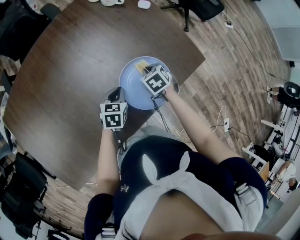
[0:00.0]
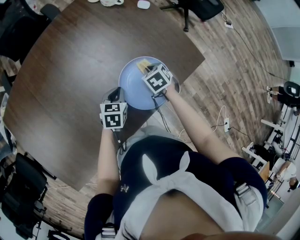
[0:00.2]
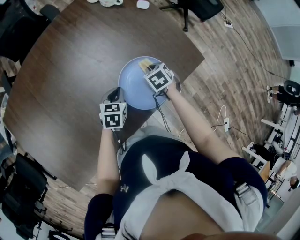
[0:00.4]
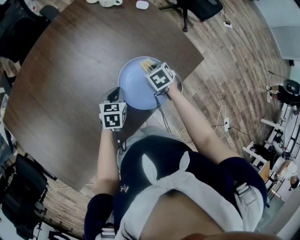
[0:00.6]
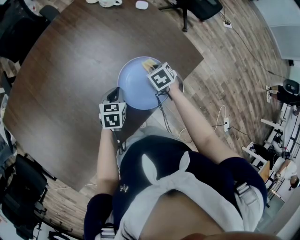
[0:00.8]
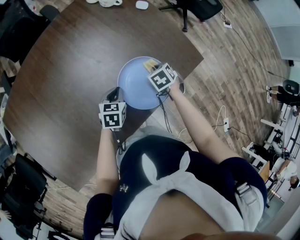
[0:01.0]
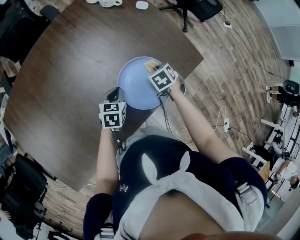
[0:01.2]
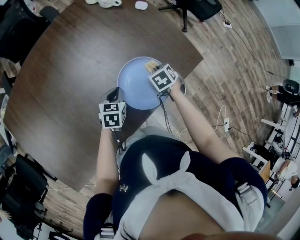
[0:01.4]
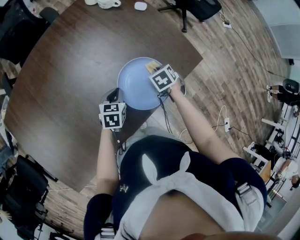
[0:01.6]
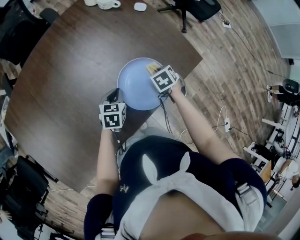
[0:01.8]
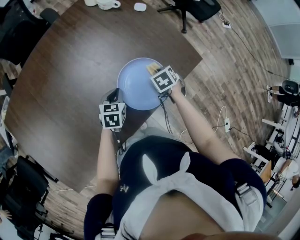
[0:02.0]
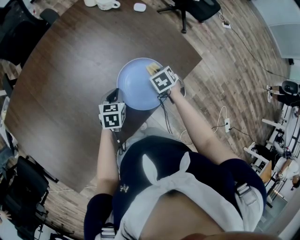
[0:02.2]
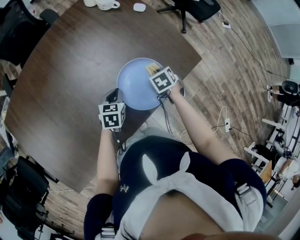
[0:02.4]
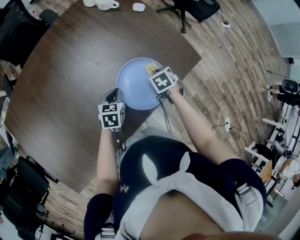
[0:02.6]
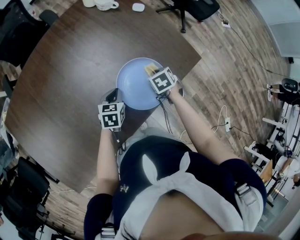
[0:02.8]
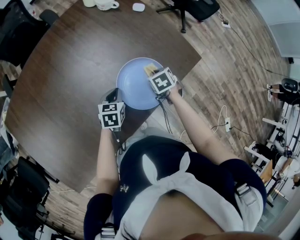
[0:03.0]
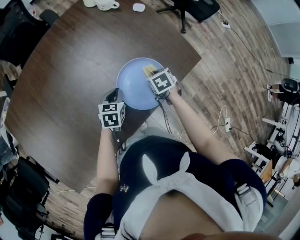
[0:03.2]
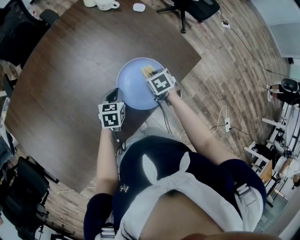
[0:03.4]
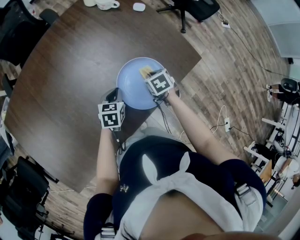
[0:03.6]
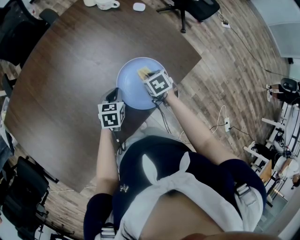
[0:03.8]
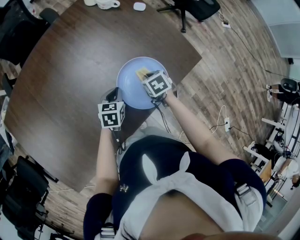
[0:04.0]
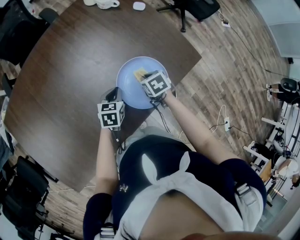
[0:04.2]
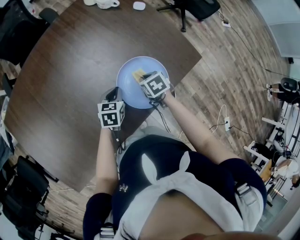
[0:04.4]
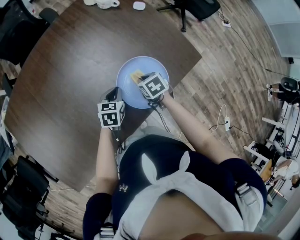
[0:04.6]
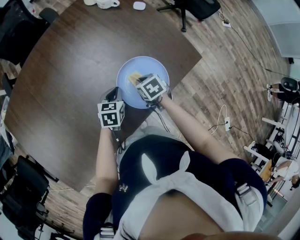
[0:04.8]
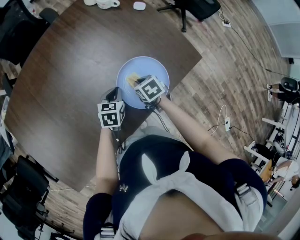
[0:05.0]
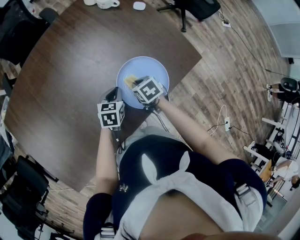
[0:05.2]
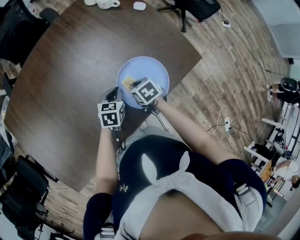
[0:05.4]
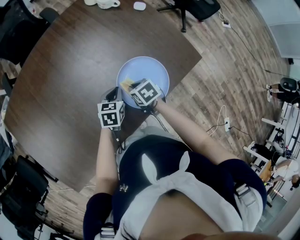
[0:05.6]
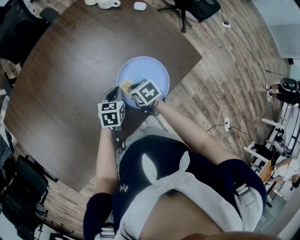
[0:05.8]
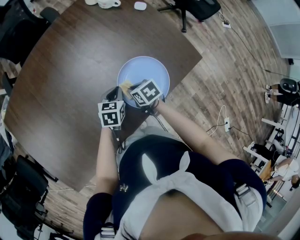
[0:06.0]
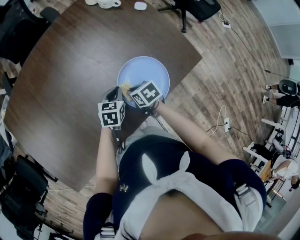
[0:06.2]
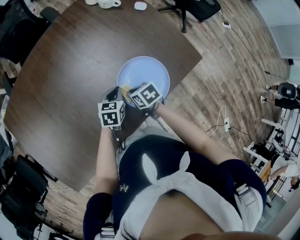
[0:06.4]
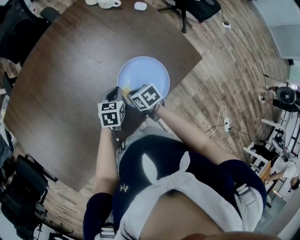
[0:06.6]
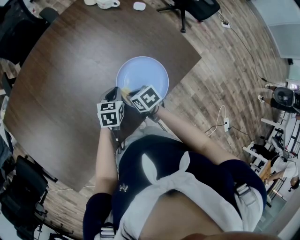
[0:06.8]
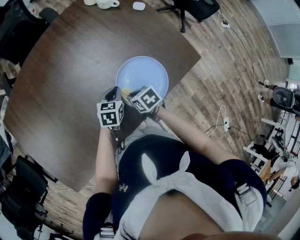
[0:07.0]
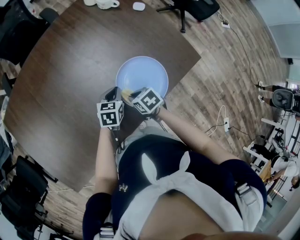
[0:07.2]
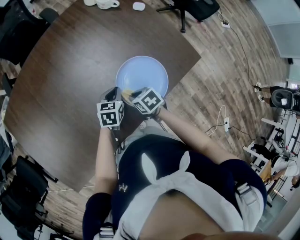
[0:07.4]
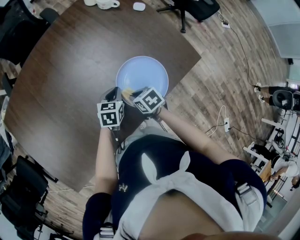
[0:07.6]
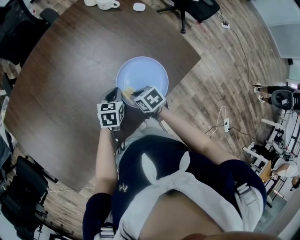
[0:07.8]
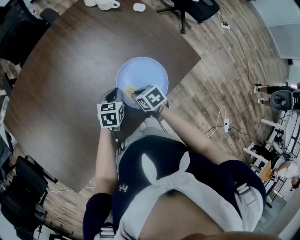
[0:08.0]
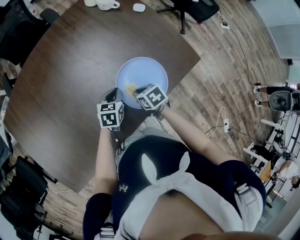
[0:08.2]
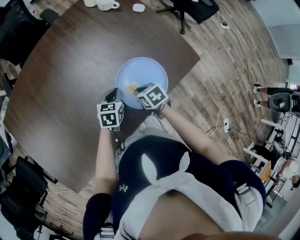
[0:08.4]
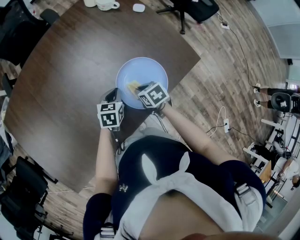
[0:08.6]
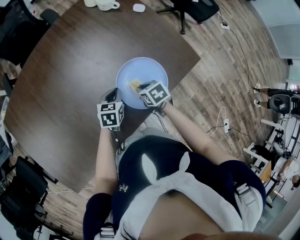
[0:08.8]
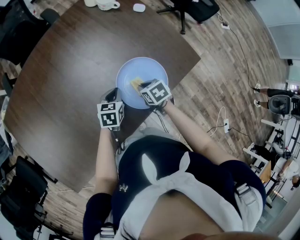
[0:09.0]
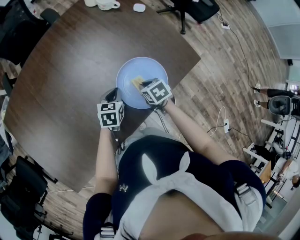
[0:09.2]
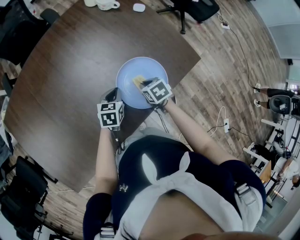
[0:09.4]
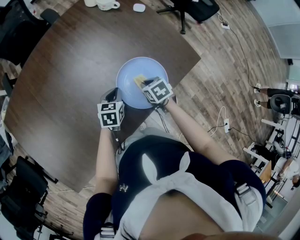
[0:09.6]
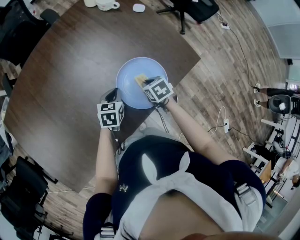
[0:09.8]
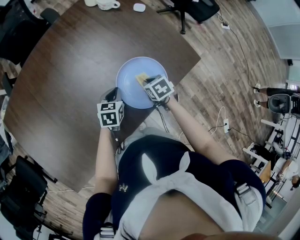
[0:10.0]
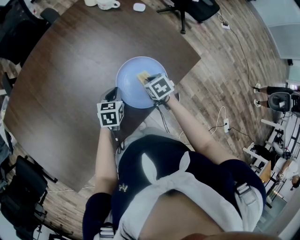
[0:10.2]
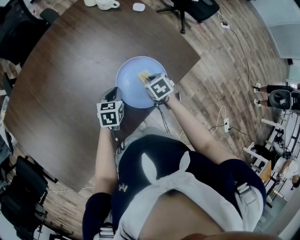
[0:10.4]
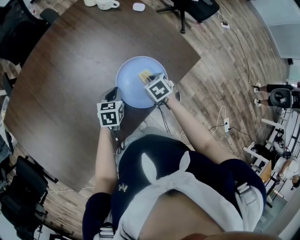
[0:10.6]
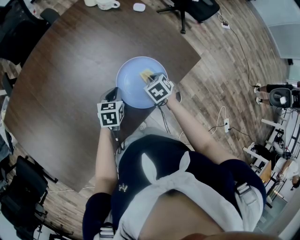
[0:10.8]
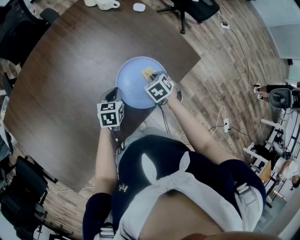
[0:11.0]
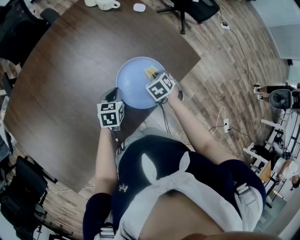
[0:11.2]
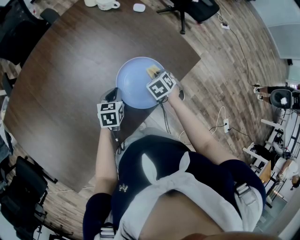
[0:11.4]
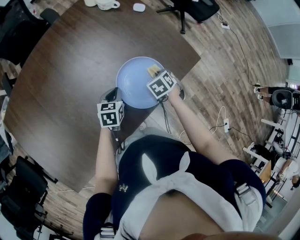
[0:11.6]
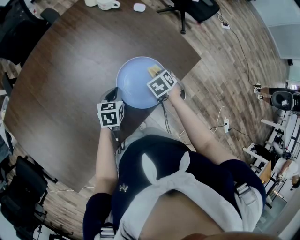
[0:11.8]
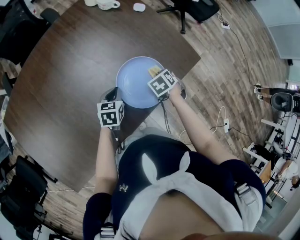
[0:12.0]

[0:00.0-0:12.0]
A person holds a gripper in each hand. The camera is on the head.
0:00.0 to 0:01.6: The right gripper travels to the right by about 5 cm.
0:01.6 to 0:03.0: The grippers stay close to where they were, moving slightly.
0:03.0 to 0:04.4: The right gripper travels to the left by roughly 5 cm.
0:04.4 to 0:06.0: The right gripper goes some 10 cm to the left.
0:06.0 to 0:07.6: The grippers move only a little.
0:07.6 to 0:09.0: The right gripper goes roughly 5 cm to the right.
0:09.0 to 0:10.4: The grippers move only a little.
0:10.4 to 0:12.0: The right gripper ends up roughly 5 cm from where it was.

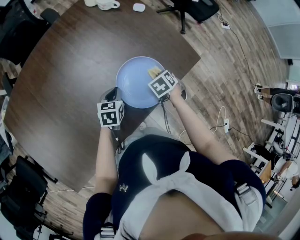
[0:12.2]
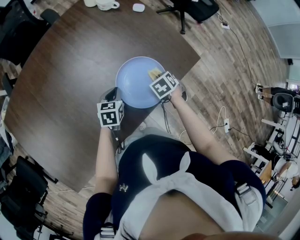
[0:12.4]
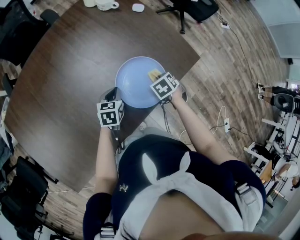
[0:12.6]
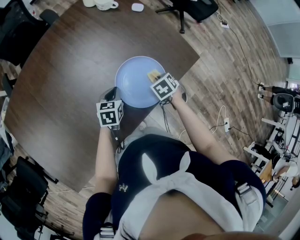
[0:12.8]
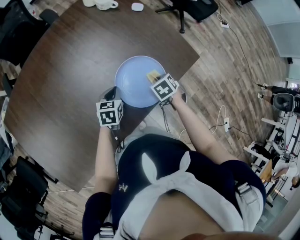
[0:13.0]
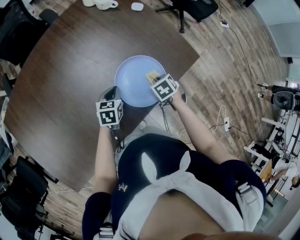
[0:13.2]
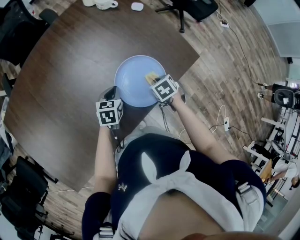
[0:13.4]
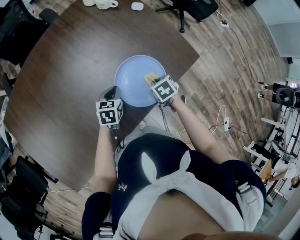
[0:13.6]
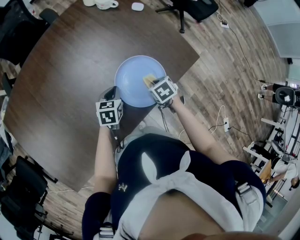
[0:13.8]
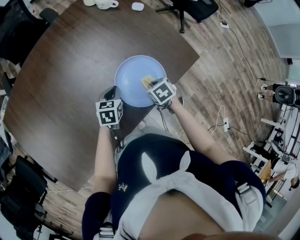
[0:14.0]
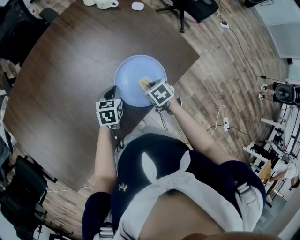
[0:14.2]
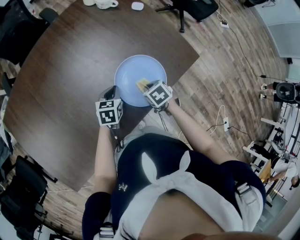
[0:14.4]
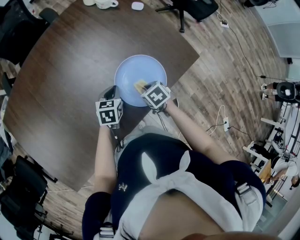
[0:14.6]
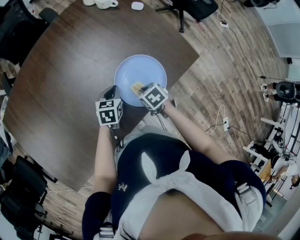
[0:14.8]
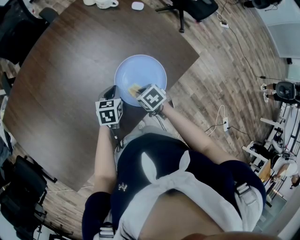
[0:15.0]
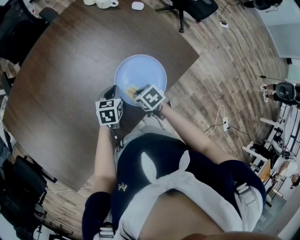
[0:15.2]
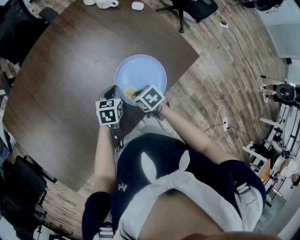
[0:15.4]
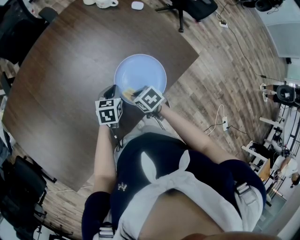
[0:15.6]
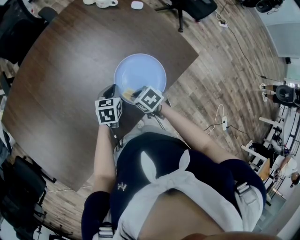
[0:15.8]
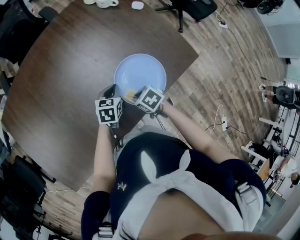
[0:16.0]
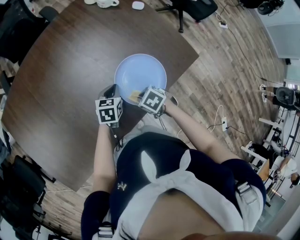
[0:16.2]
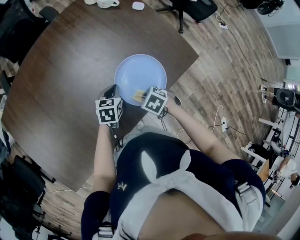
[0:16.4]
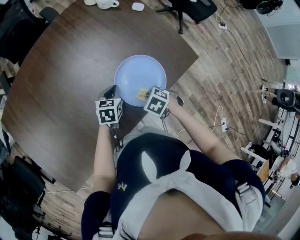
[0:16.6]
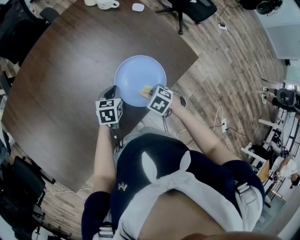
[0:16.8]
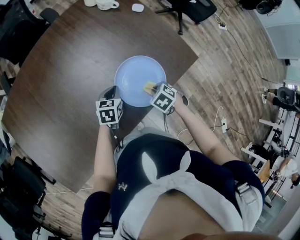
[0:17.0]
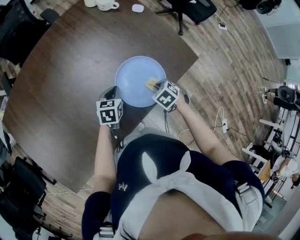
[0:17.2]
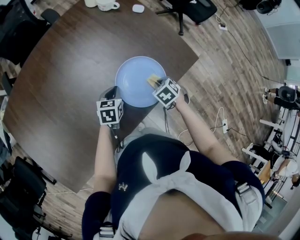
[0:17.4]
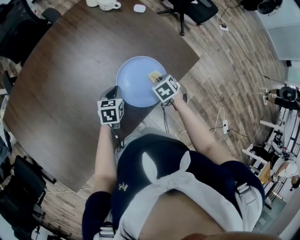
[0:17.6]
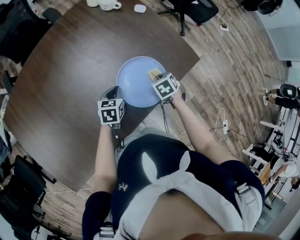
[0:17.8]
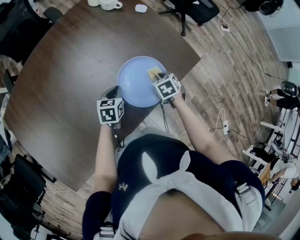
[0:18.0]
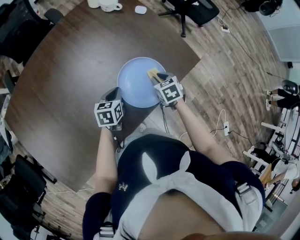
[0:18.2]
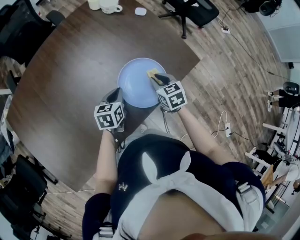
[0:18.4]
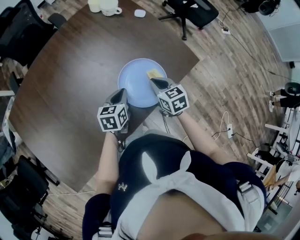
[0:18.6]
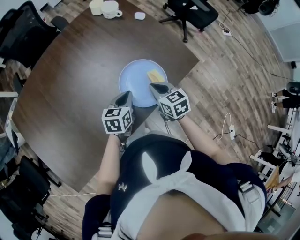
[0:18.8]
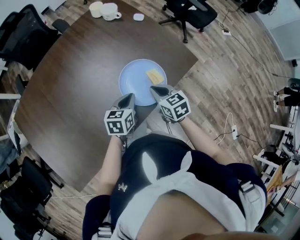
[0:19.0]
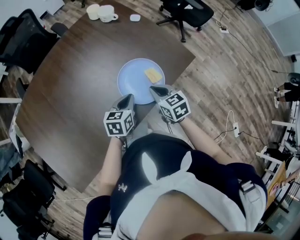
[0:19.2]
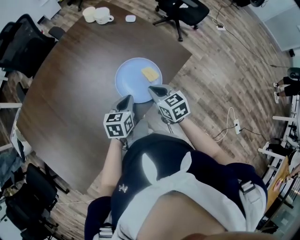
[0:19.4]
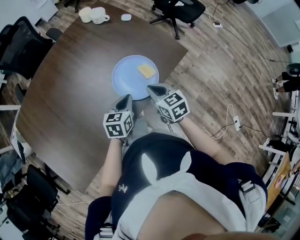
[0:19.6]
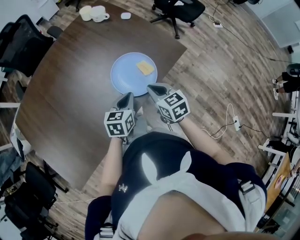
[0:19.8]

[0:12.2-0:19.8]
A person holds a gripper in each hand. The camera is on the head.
0:12.2 to 0:13.8: The right gripper changes place by about 5 cm.
0:13.8 to 0:15.2: The right gripper is displaced to the left by roughly 10 cm.
0:15.2 to 0:16.8: The right gripper moves about 5 cm, and changes its angle by roughly 30 degrees.
0:16.8 to 0:18.2: The right gripper ends up some 10 cm from where it was, and turns by some 40 degrees.
0:18.2 to 0:19.8: The left gripper is displaced backward, upward and to the right by approximately 20 cm; the right gripper goes about 20 cm backward and upward, rotates some 30 degrees, and closes up.

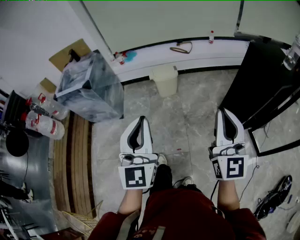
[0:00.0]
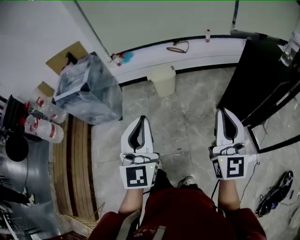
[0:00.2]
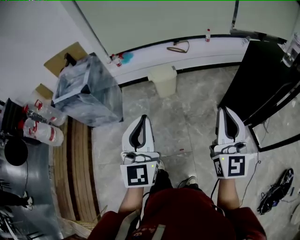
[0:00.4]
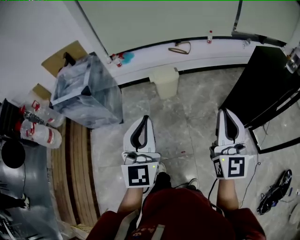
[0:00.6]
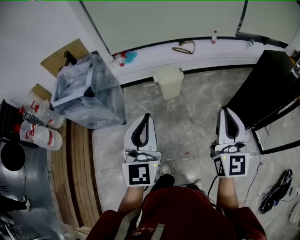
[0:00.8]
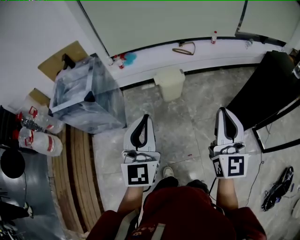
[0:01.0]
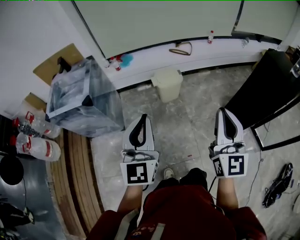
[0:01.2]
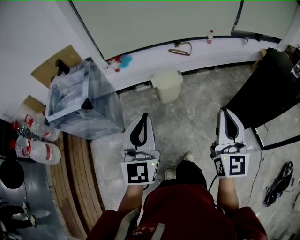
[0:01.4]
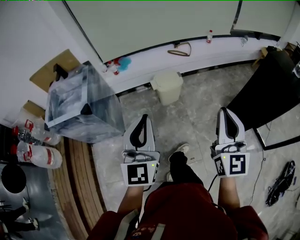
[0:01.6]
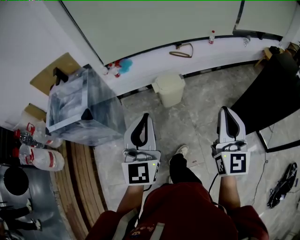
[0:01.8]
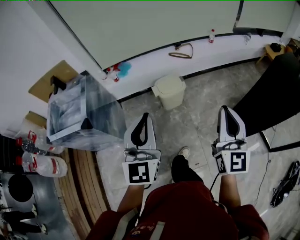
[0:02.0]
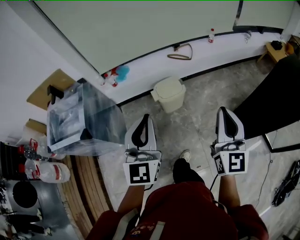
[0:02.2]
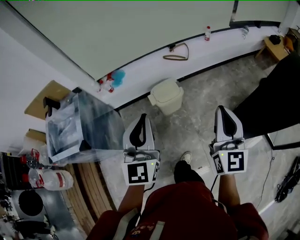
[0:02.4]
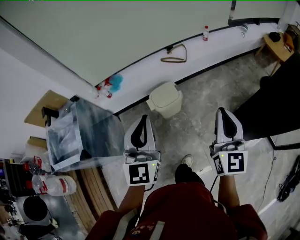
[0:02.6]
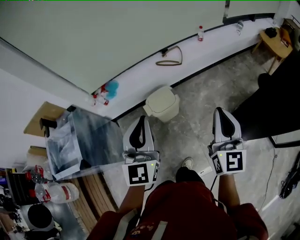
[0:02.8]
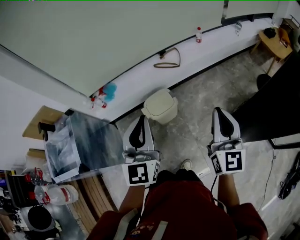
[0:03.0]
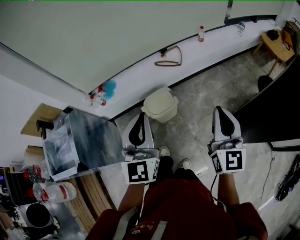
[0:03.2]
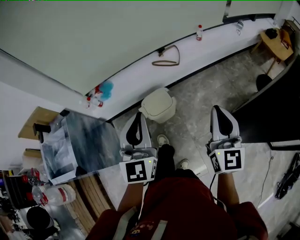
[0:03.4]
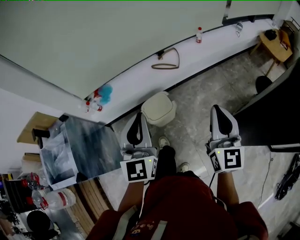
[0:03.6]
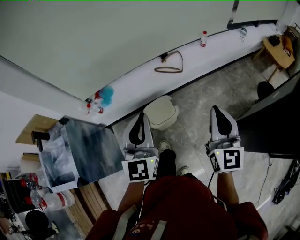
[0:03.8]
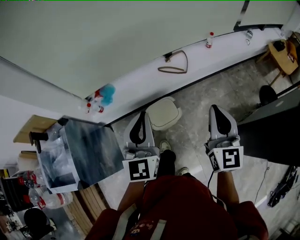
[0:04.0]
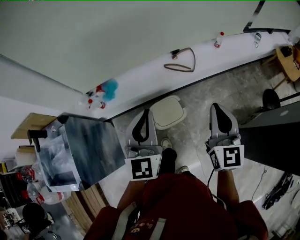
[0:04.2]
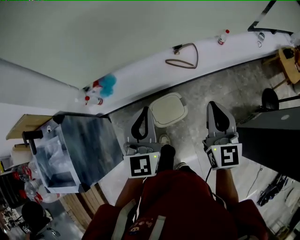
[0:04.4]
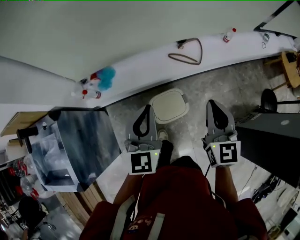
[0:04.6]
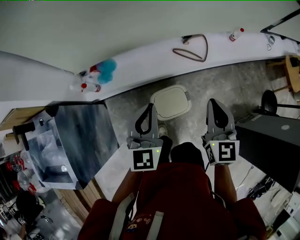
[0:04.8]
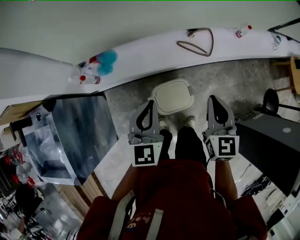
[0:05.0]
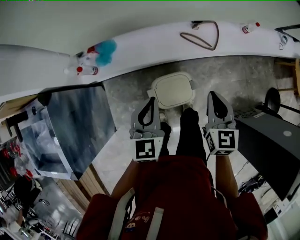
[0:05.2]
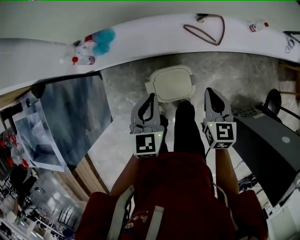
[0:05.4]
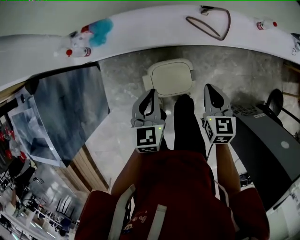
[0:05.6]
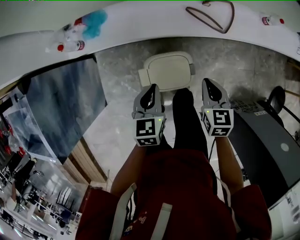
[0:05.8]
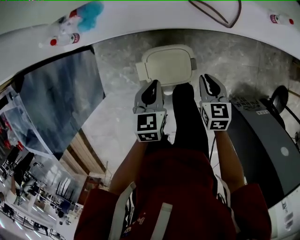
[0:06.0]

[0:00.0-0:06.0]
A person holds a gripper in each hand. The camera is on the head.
0:00.0 to 0:01.6: The left gripper moves forward and to the left, some 30 cm; the right gripper heads to the left and forward, covering roughly 25 cm.
0:01.6 to 0:03.0: Both grippers move forward, roughly 35 cm.
0:03.0 to 0:04.4: The left gripper travels forward, to the left and downward by about 30 cm, while the right gripper is displaced forward and to the left by about 30 cm.
0:04.4 to 0:06.0: Both grippers move downward, roughly 40 cm. The left gripper angles its fingers downward, by about 40 degrees; the right gripper angles its fingers downward, by roughly 40 degrees.
